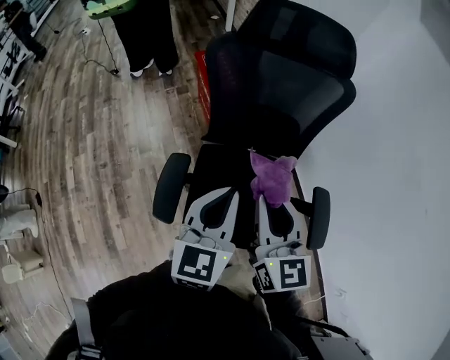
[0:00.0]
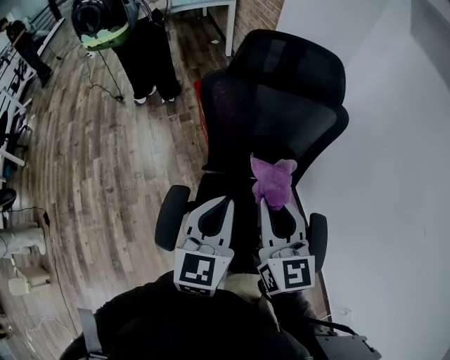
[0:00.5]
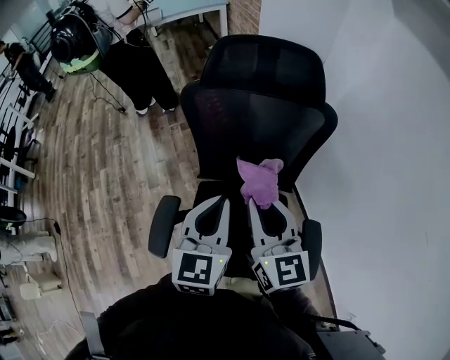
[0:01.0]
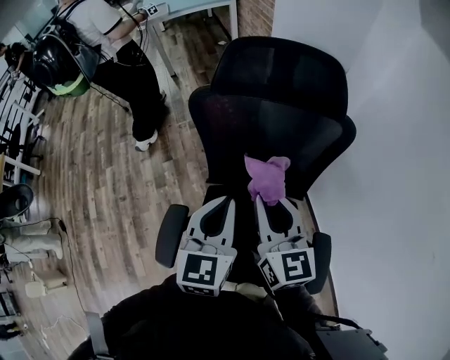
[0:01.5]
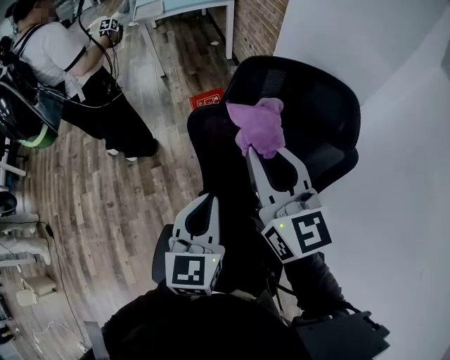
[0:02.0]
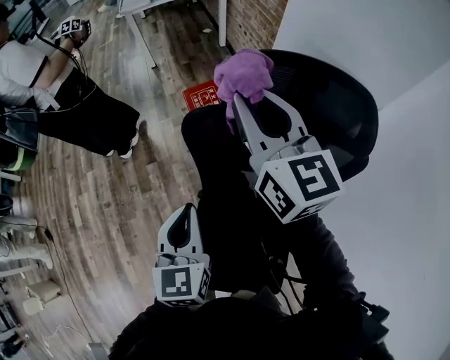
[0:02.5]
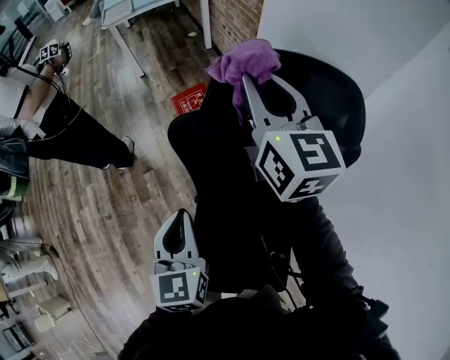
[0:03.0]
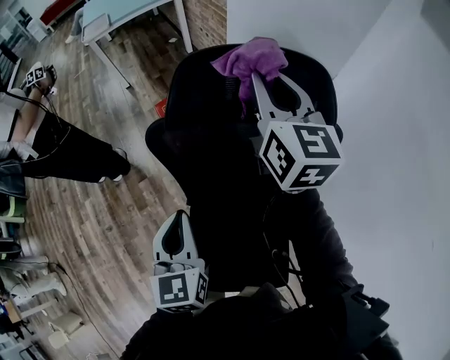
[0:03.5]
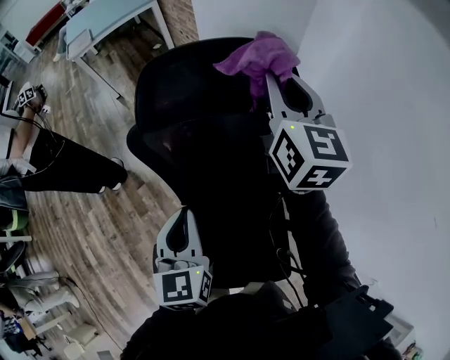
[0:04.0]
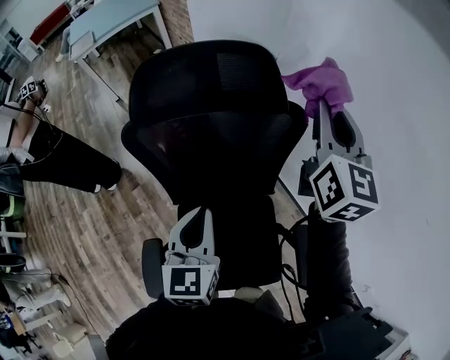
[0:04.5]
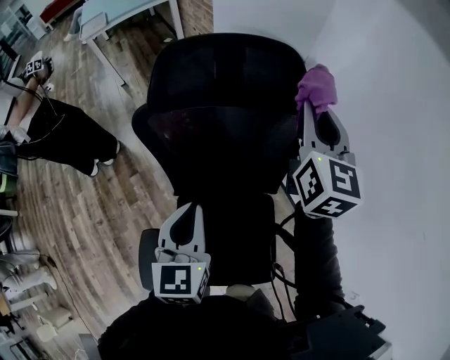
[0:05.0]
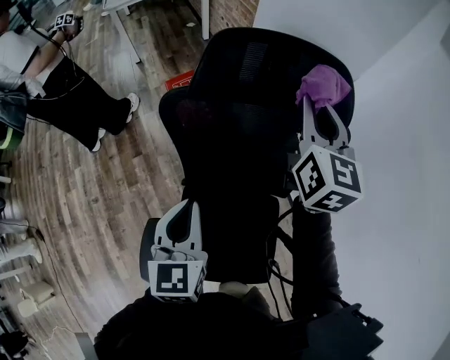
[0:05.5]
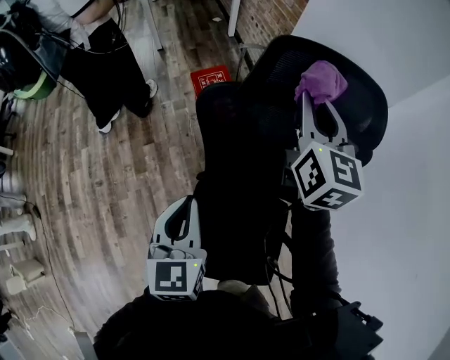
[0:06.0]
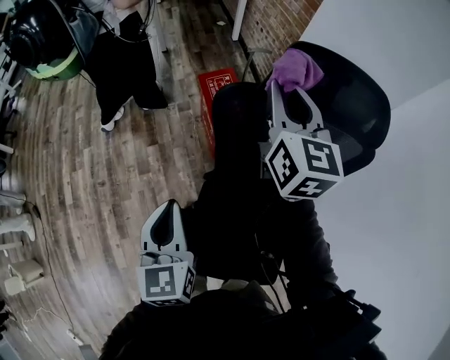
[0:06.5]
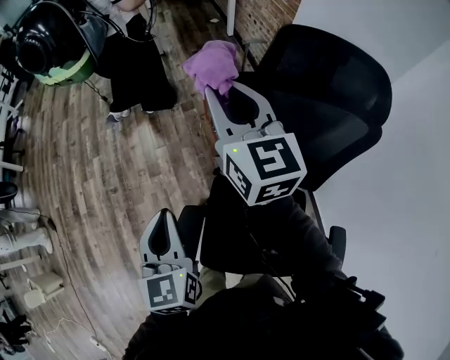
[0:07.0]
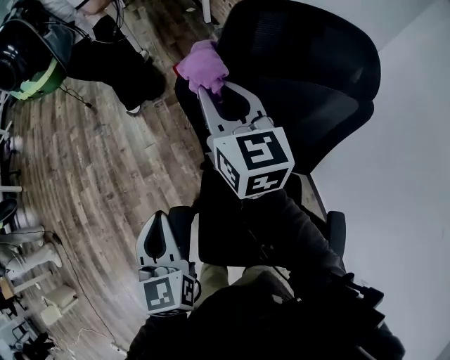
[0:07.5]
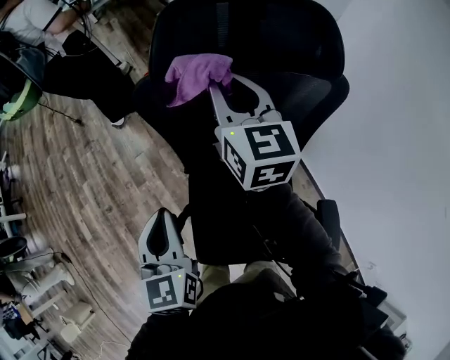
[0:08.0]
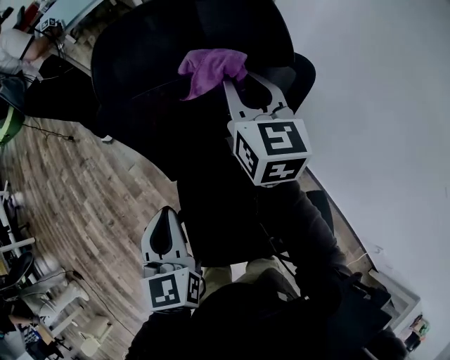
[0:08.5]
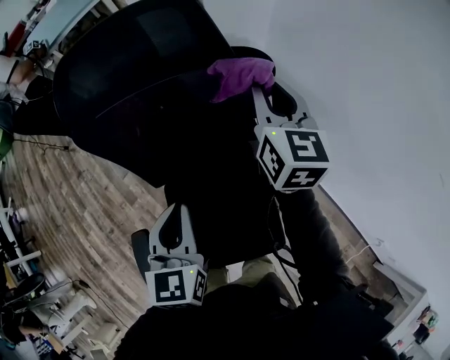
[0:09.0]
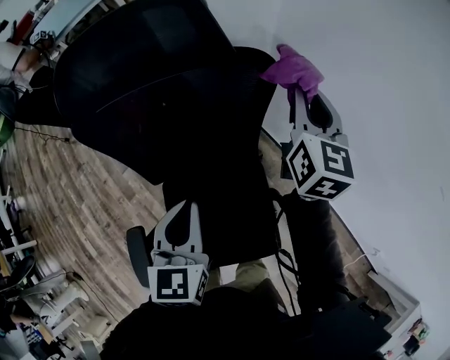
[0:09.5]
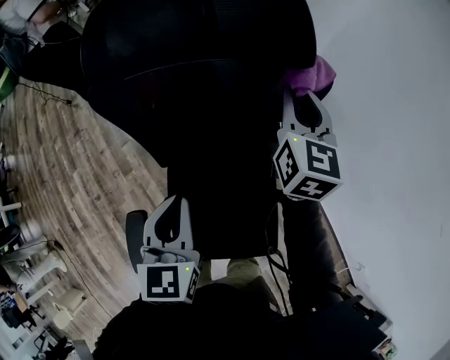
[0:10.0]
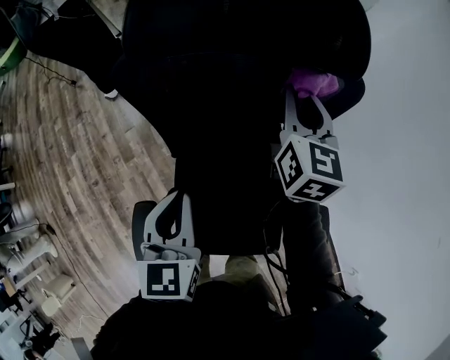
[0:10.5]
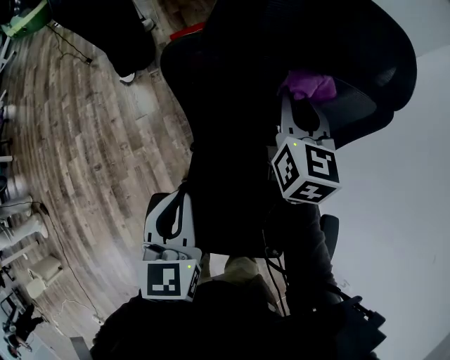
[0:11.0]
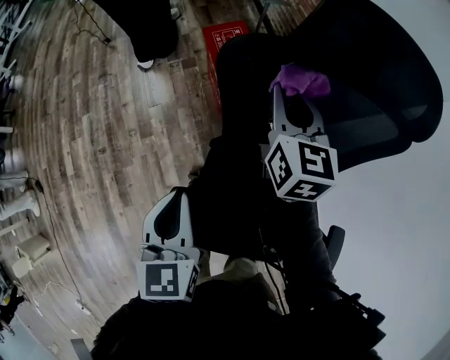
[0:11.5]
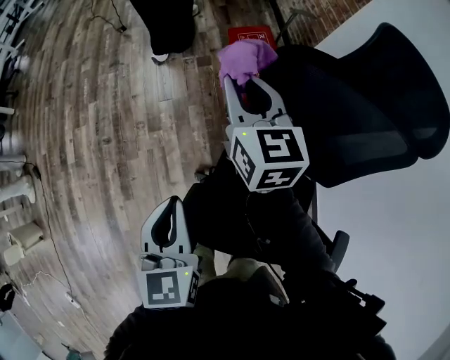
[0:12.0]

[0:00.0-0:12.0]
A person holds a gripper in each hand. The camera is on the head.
0:00.0 to 0:02.0: The grippers both shift forward by some 25 cm.
0:02.0 to 0:04.0: The right gripper is displaced to the right and forward by approximately 20 cm, and rotates approximately 30 degrees.
0:04.0 to 0:06.0: Both grippers travel together to the left, some 15 cm.
0:06.0 to 0:08.0: The right gripper travels downward by roughly 10 cm, and travels to the left and back again, approximately 20 cm each way. The left gripper travels to the left and back again, roughly 10 cm each way.
0:08.0 to 0:10.0: The right gripper swivels roughly 20 degrees.
0:10.0 to 0:12.0: The right gripper ends up about 50 cm from where it was, and swivels some 40 degrees, while the left gripper ends up some 30 cm from where it was, and rotates about 30 degrees.

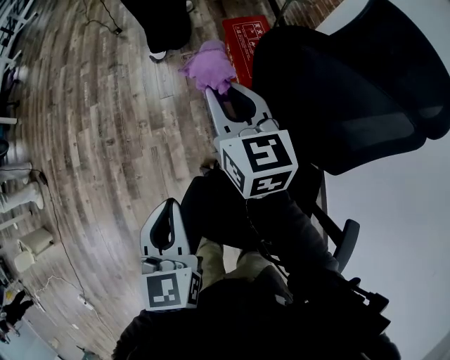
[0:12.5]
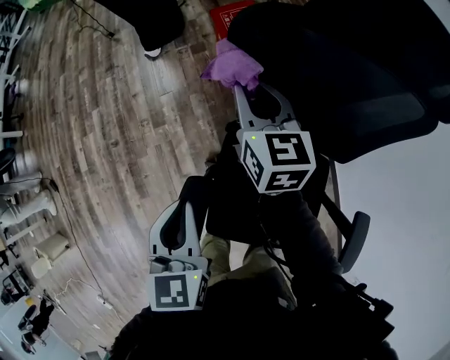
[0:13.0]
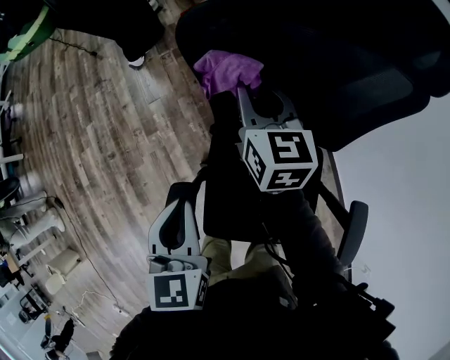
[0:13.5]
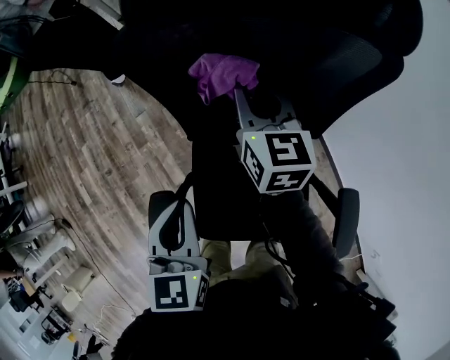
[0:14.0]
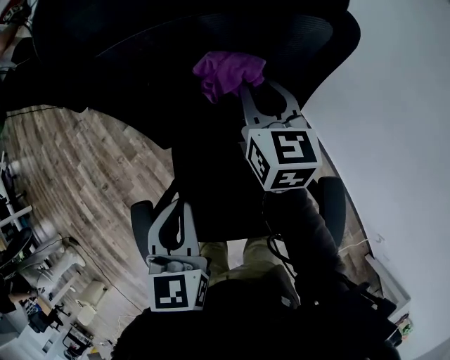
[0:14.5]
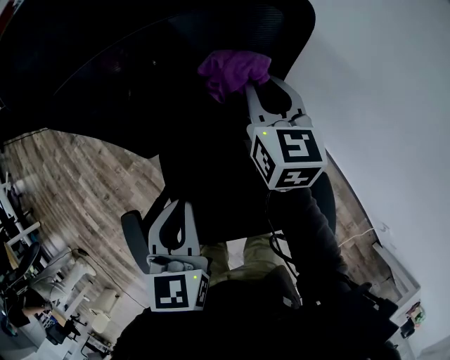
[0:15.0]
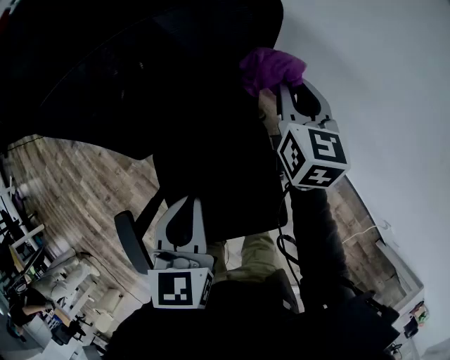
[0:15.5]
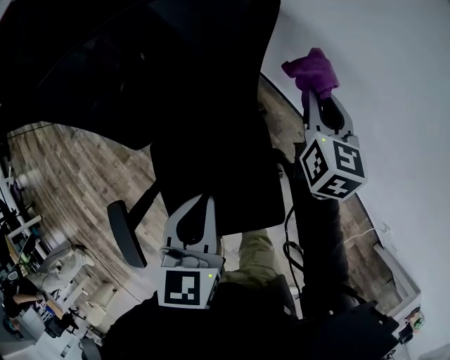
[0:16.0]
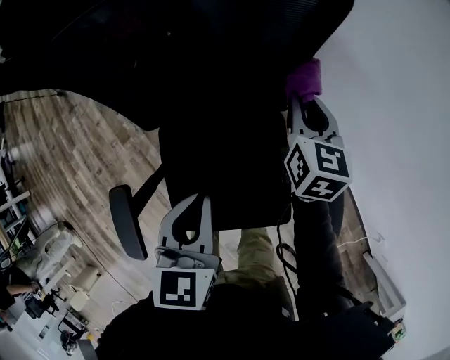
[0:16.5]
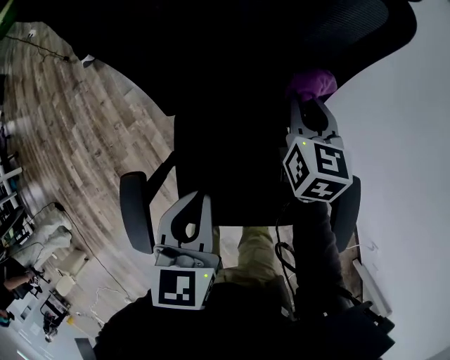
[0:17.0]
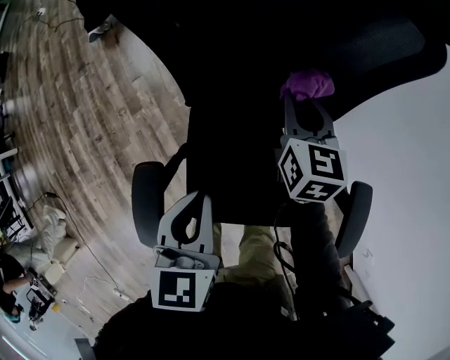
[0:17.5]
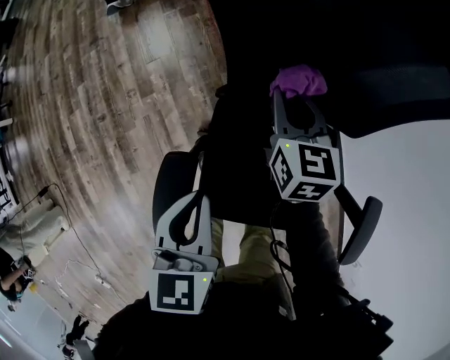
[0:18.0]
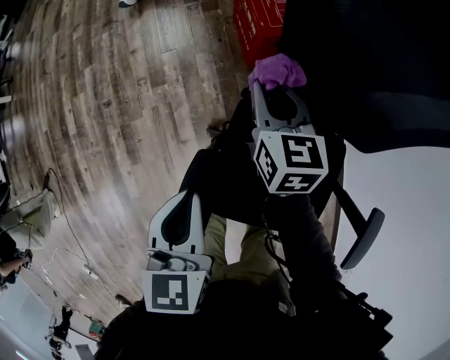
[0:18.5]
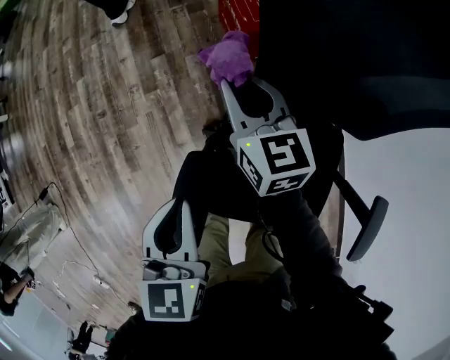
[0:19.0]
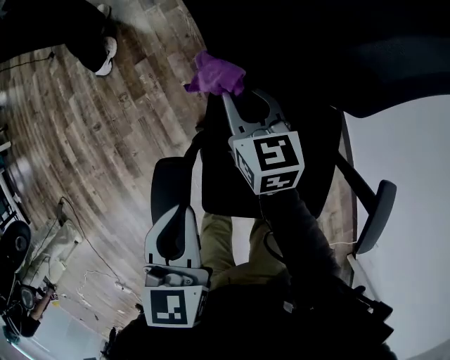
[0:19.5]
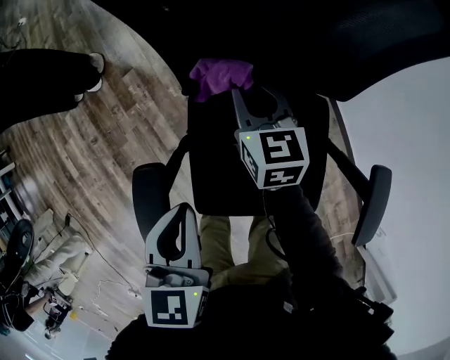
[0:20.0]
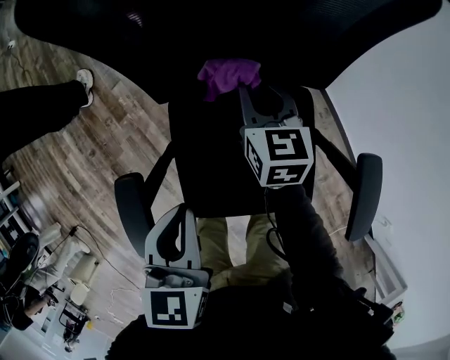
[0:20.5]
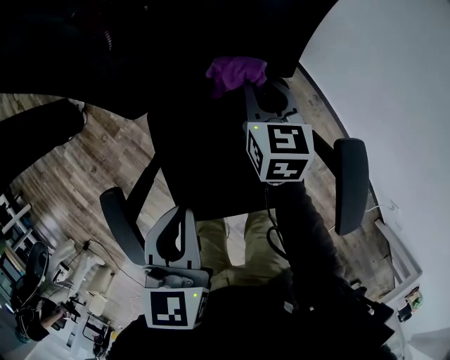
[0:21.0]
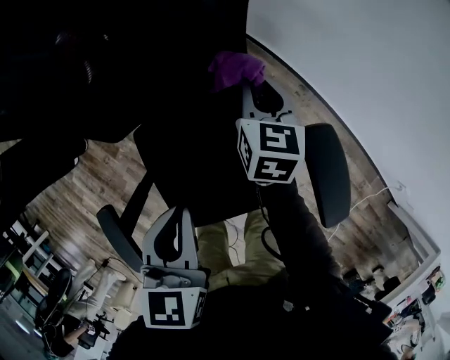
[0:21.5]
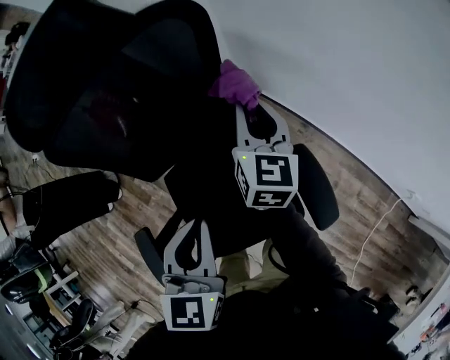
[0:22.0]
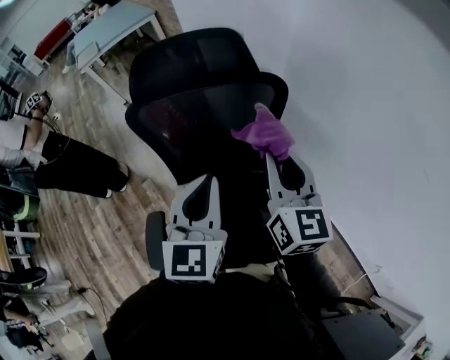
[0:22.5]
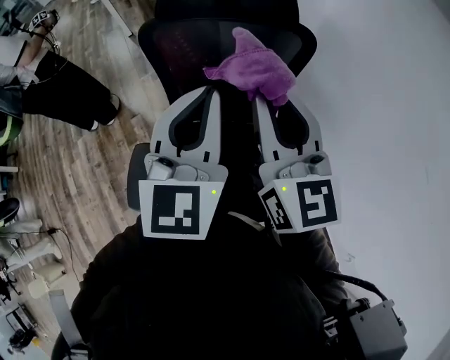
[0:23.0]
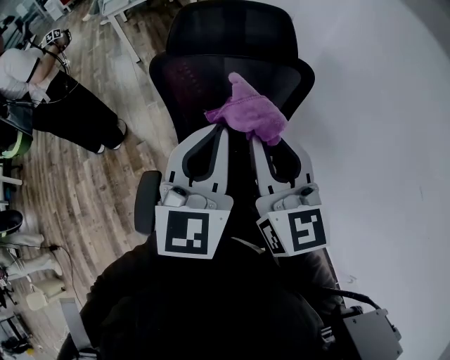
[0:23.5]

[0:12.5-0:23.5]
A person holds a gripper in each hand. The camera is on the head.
0:12.5 to 0:14.5: The left gripper moves approximately 30 cm, and swivels about 30 degrees. The right gripper ends up roughly 40 cm from where it was, and rotates some 30 degrees.
0:14.5 to 0:16.0: The left gripper goes approximately 15 cm to the right; the right gripper shifts about 25 cm to the right, and turns by approximately 20 degrees.
0:16.0 to 0:18.0: The left gripper ends up some 35 cm from where it was, and rotates about 30 degrees. Meanwhile the right gripper ends up about 50 cm from where it was, and changes its angle by approximately 30 degrees.
0:18.0 to 0:20.0: The left gripper reaches some 10 cm to the left, then returns, while the right gripper is displaced downward by roughly 10 cm, and reaches approximately 15 cm to the left, then returns.
0:20.0 to 0:21.5: The right gripper moves some 30 cm, and swivels some 30 degrees. The left gripper shifts by about 20 cm, and turns by about 20 degrees.
0:21.5 to 0:23.5: The grippers both shift upward by roughly 40 cm. The left gripper angles its fingers upward, by some 40 degrees; the right gripper angles its fingers upward, by about 40 degrees.

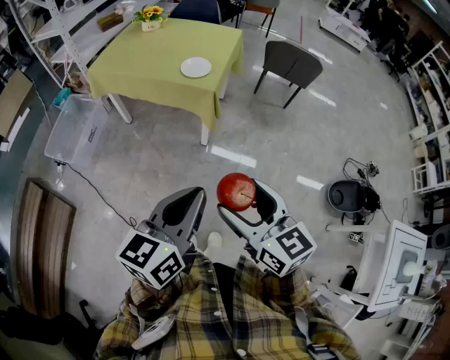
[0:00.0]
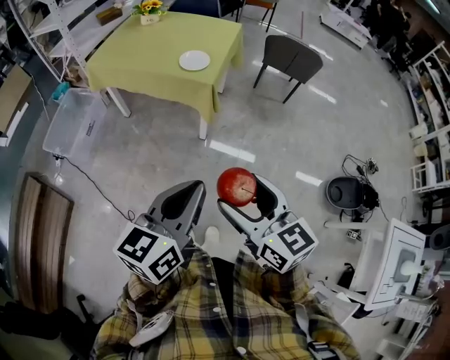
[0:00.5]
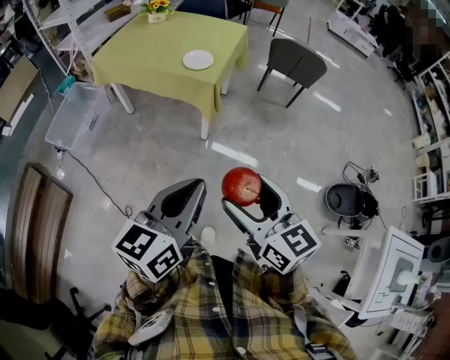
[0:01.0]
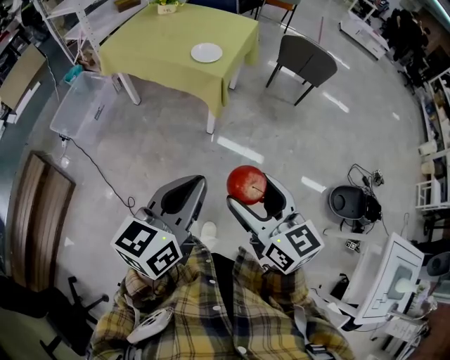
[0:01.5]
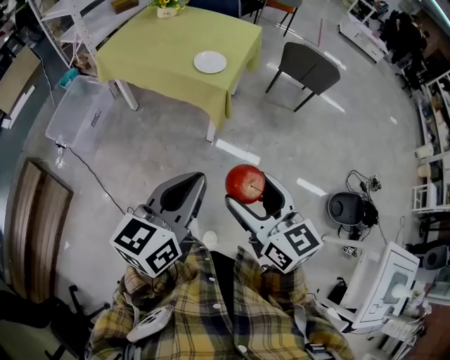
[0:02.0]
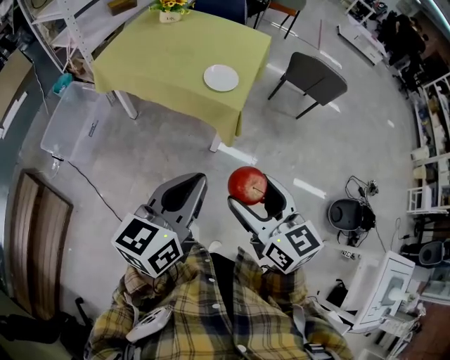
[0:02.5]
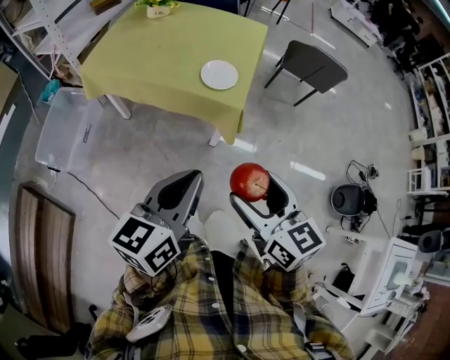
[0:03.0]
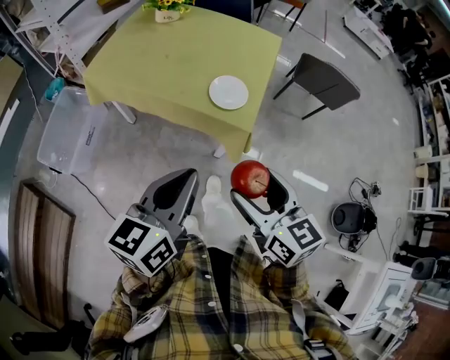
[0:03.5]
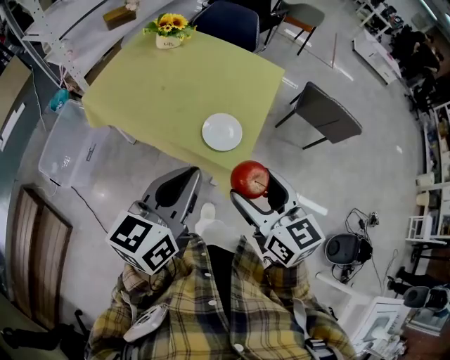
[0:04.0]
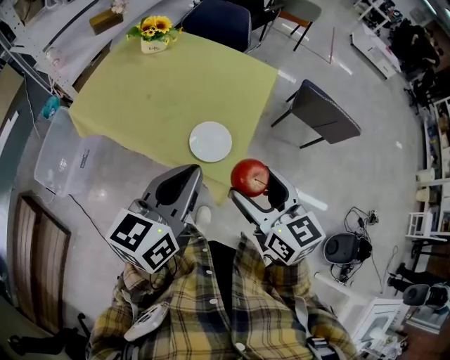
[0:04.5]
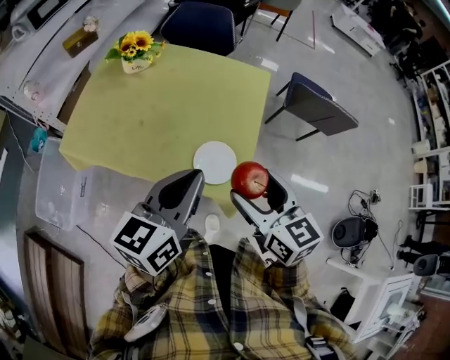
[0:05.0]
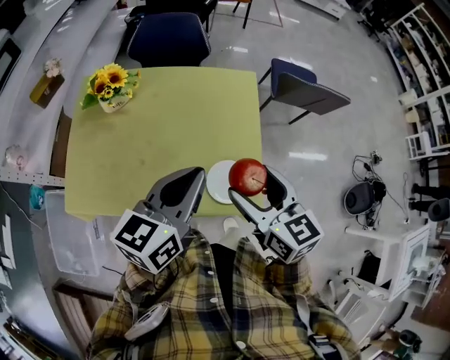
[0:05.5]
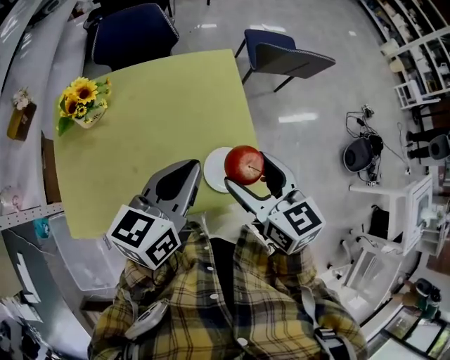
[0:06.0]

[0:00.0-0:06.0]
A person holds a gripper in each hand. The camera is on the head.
0:00.0 to 0:02.0: Both grippers move forward, roughly 10 cm.
0:02.0 to 0:04.0: The two grippers travel together, forward, some 40 cm.
0:04.0 to 0:06.0: The right gripper moves about 25 cm, and turns by roughly 30 degrees, while the left gripper ends up some 30 cm from where it was, and changes its angle by some 40 degrees.
